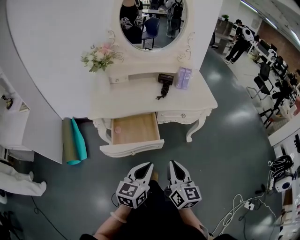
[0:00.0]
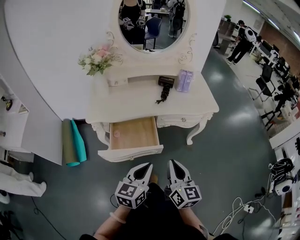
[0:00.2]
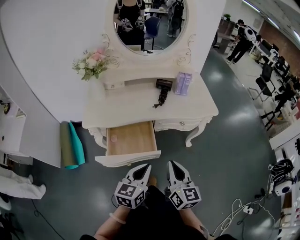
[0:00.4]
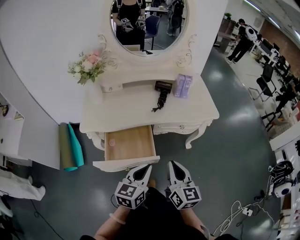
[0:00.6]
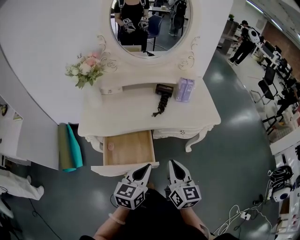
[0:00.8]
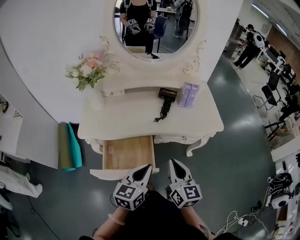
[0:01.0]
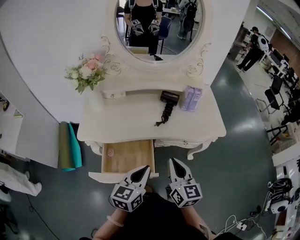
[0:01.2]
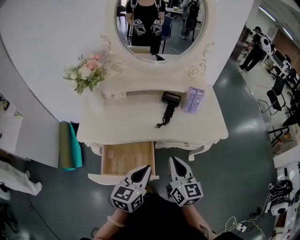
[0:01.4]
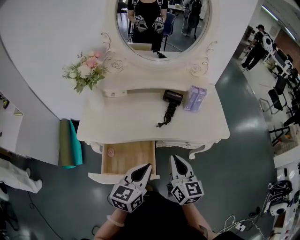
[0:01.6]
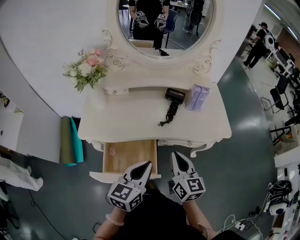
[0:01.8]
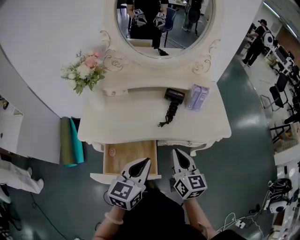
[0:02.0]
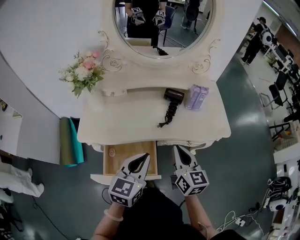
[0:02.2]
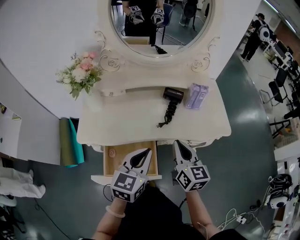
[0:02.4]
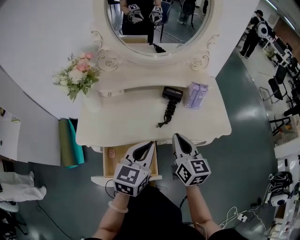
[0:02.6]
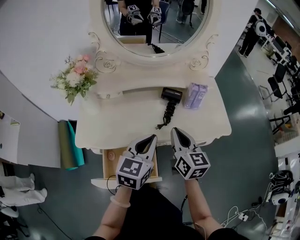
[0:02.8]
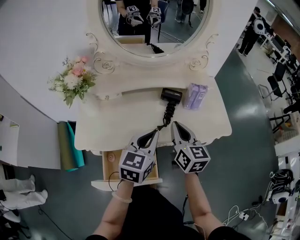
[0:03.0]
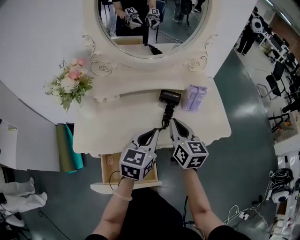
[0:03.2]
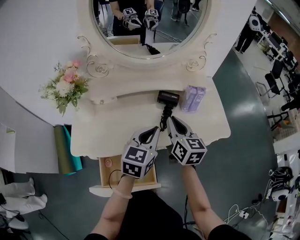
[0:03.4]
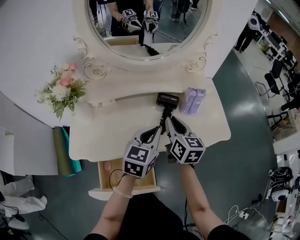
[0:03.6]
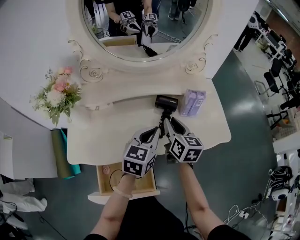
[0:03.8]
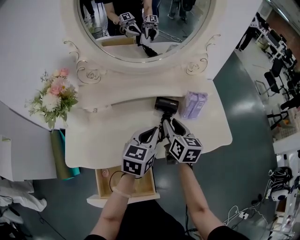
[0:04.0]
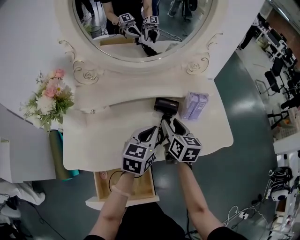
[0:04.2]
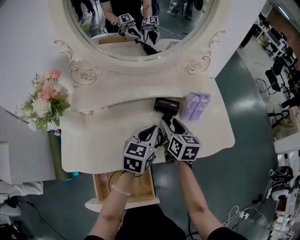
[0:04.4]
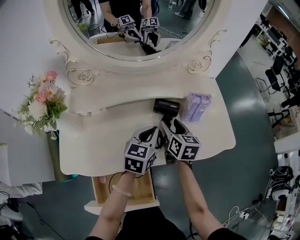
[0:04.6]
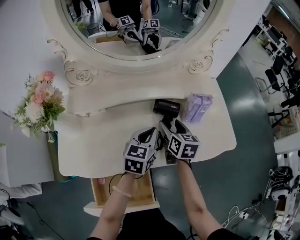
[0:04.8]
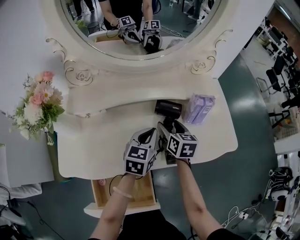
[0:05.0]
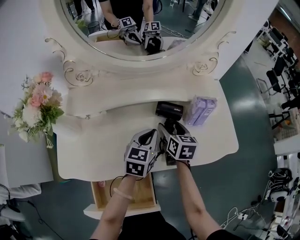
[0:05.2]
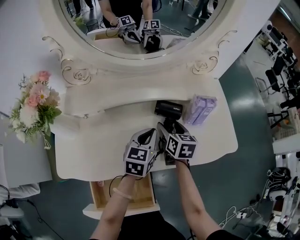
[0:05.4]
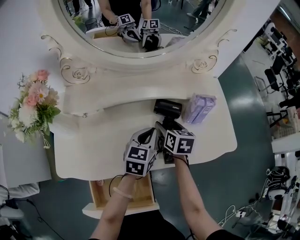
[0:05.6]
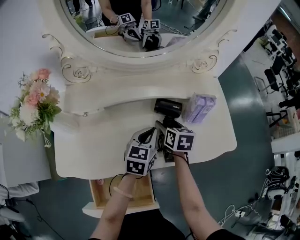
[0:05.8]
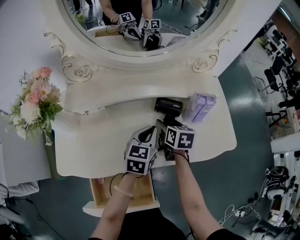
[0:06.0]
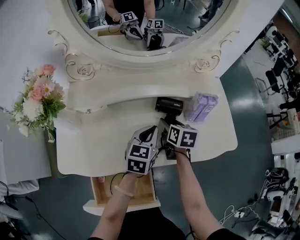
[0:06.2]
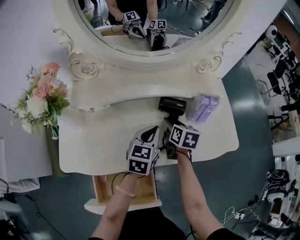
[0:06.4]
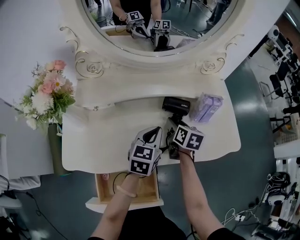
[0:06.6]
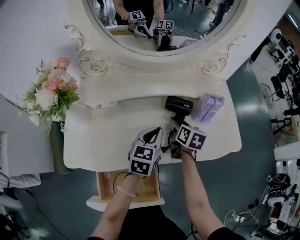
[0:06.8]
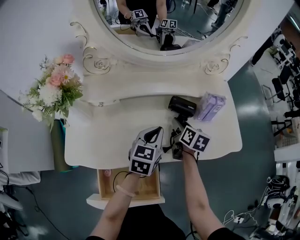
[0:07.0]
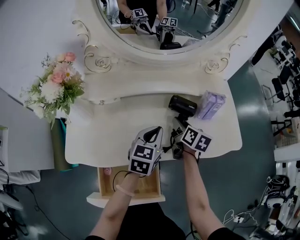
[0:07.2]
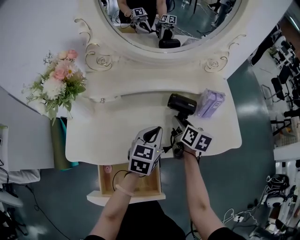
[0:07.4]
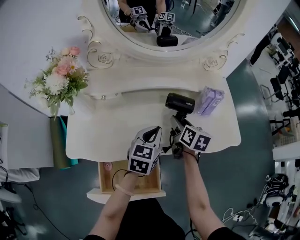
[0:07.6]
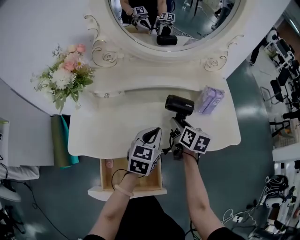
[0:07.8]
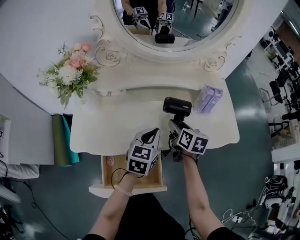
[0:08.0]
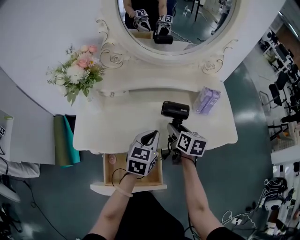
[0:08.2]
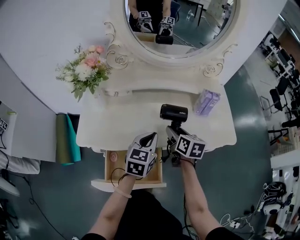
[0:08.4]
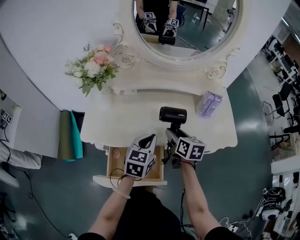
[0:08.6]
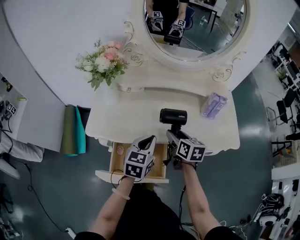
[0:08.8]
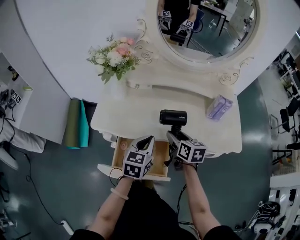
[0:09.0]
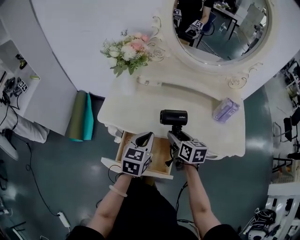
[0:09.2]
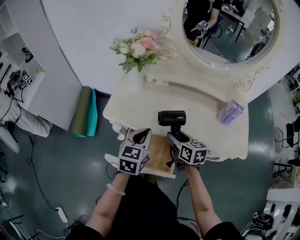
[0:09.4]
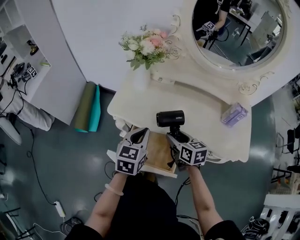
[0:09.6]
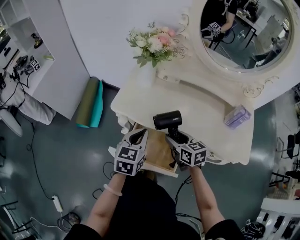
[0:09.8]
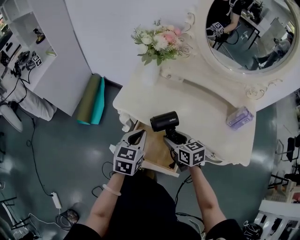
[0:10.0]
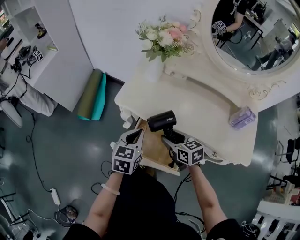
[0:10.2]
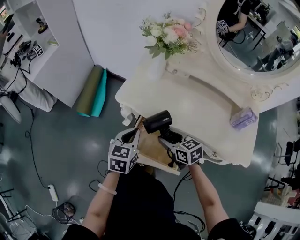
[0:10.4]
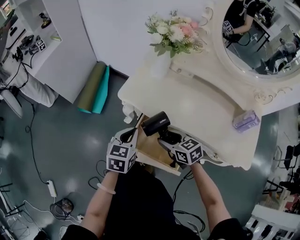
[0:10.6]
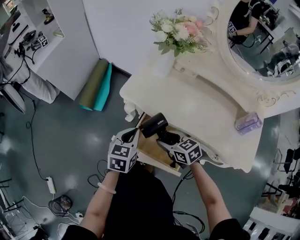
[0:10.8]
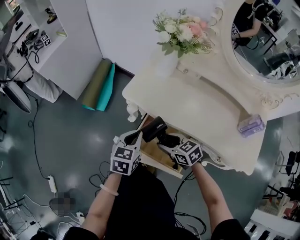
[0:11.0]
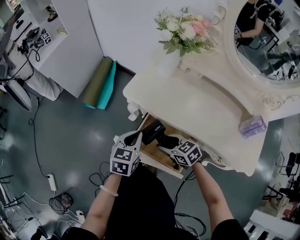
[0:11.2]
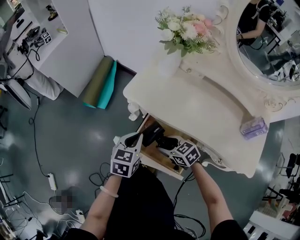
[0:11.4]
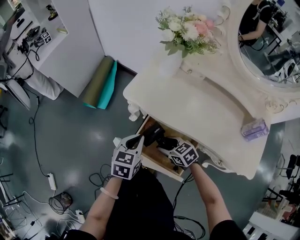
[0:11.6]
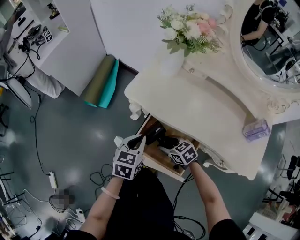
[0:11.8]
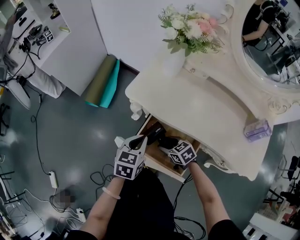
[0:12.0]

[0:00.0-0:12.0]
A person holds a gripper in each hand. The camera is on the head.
0:00.0 to 0:01.6: The grippers both shift forward by about 25 cm.
0:01.6 to 0:03.0: Both grippers travel together forward, about 15 cm.
0:03.0 to 0:04.4: The grippers both shift forward and downward by roughly 15 cm. The right gripper opens up.
0:04.4 to 0:06.0: The right gripper is displaced downward by about 10 cm. The left gripper moves approximately 5 cm.
0:06.0 to 0:07.6: The right gripper changes place by roughly 5 cm. Meanwhile the left gripper travels backward by about 5 cm.
0:07.6 to 0:09.0: Both grippers travel together backward and to the left, approximately 15 cm. The right gripper rotates some 20 degrees.
0:09.0 to 0:10.4: The right gripper ends up approximately 20 cm from where it was, and swivels roughly 40 degrees; the left gripper changes place by roughly 20 cm, and changes its angle by about 20 degrees.
0:10.4 to 0:12.0: The right gripper goes approximately 15 cm downward, and changes its angle by about 20 degrees. The left gripper heads downward, covering approximately 5 cm.

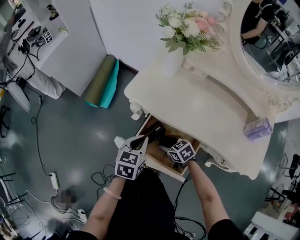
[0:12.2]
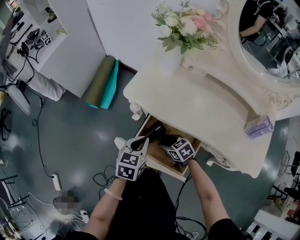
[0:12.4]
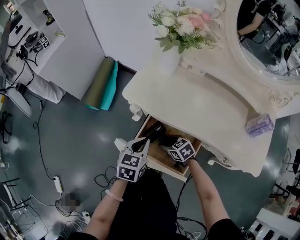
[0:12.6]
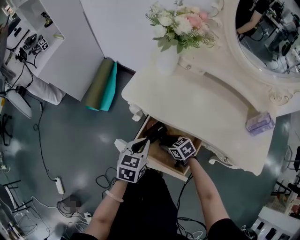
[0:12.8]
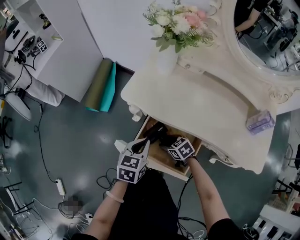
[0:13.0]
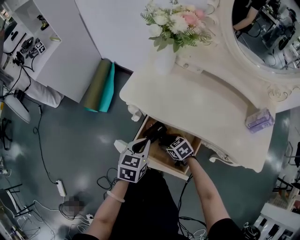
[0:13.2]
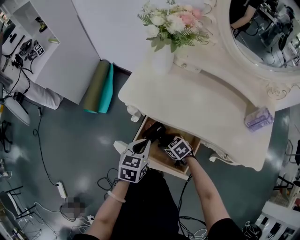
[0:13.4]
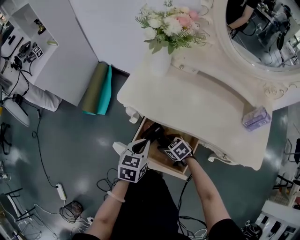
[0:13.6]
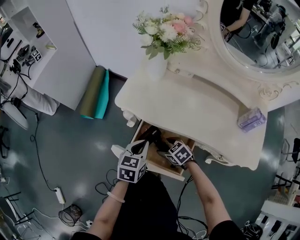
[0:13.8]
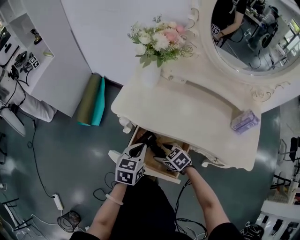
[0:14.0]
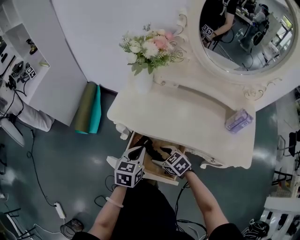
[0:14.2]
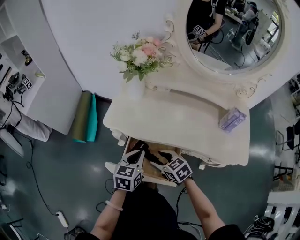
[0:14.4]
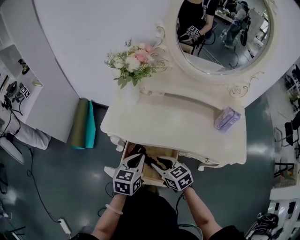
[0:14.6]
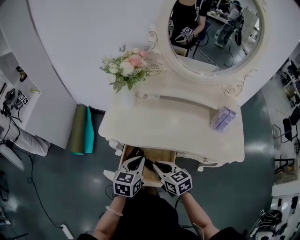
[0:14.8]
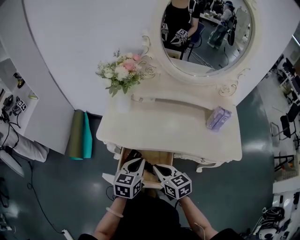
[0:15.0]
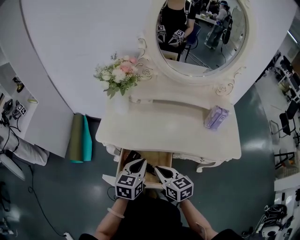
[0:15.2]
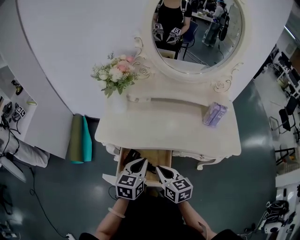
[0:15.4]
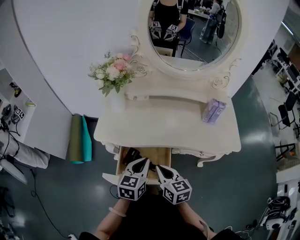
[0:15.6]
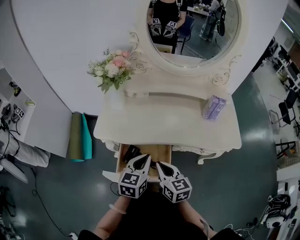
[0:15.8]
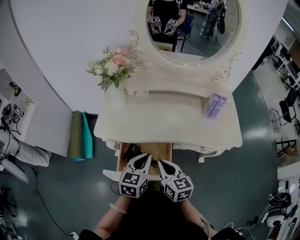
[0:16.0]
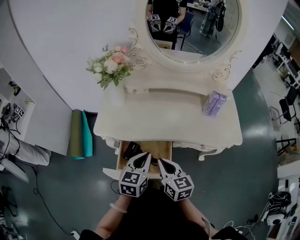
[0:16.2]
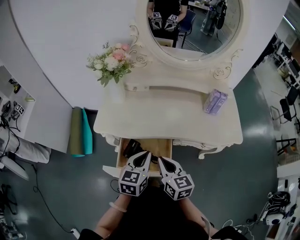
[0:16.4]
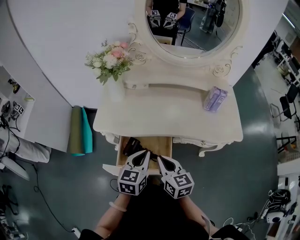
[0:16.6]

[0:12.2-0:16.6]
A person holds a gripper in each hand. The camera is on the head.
0:12.2 to 0:13.6: The grippers stay close to where they were, moving slightly.
0:13.6 to 0:15.2: The left gripper travels upward by about 10 cm. Meanwhile the right gripper goes approximately 25 cm upward, angles its fingers upward, by about 30 degrees, and closes up.
0:15.2 to 0:16.6: There are only small adjustments of the grippers.

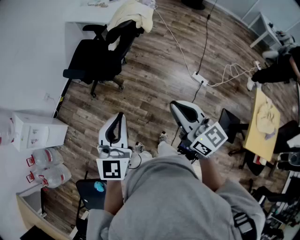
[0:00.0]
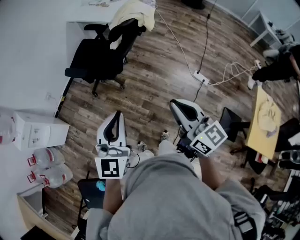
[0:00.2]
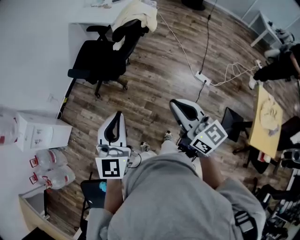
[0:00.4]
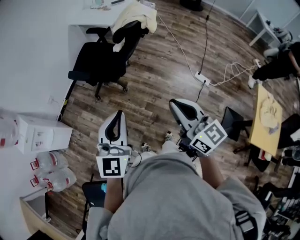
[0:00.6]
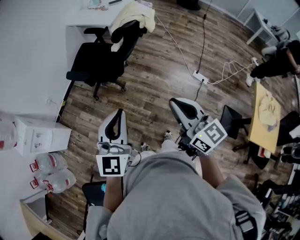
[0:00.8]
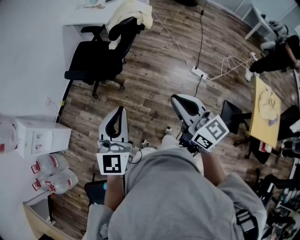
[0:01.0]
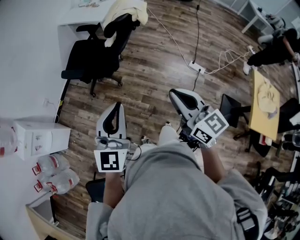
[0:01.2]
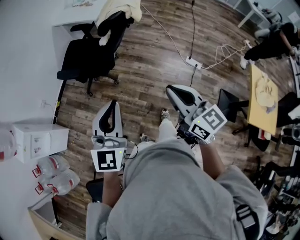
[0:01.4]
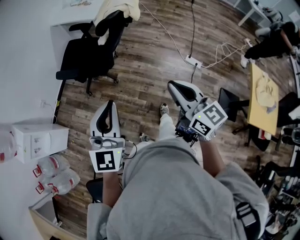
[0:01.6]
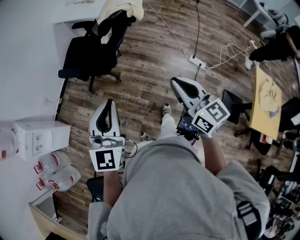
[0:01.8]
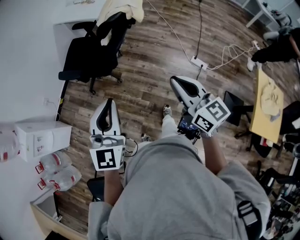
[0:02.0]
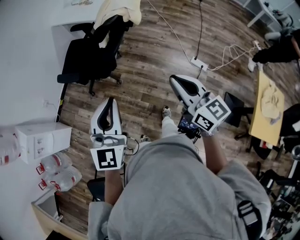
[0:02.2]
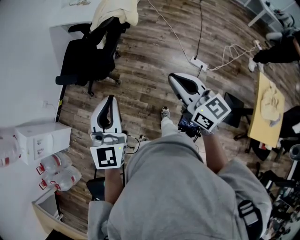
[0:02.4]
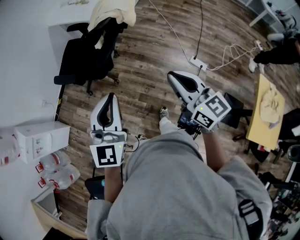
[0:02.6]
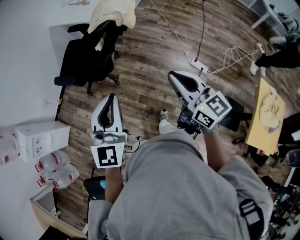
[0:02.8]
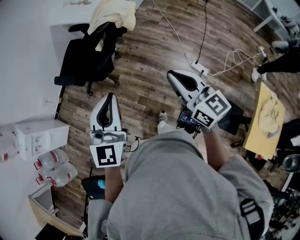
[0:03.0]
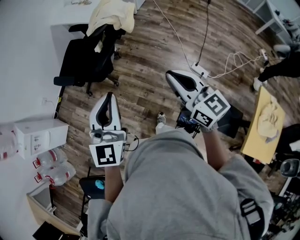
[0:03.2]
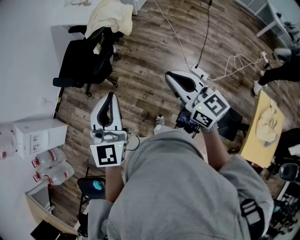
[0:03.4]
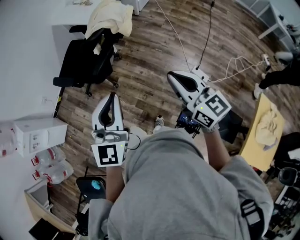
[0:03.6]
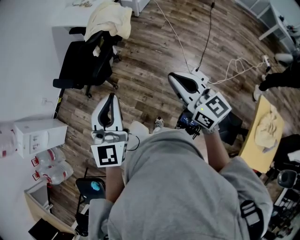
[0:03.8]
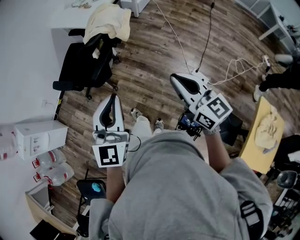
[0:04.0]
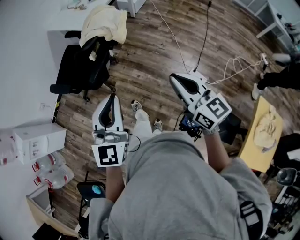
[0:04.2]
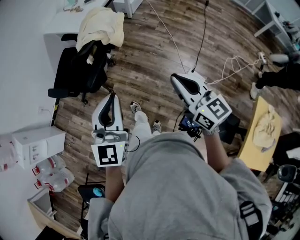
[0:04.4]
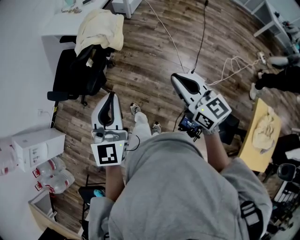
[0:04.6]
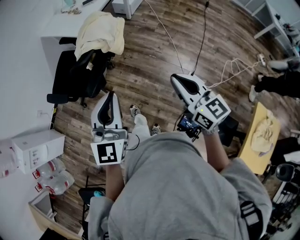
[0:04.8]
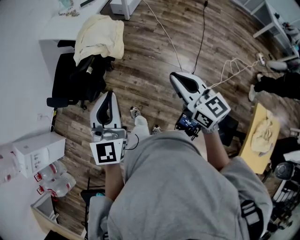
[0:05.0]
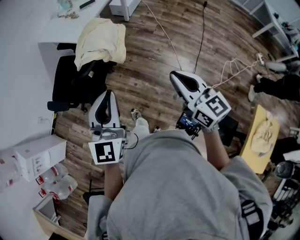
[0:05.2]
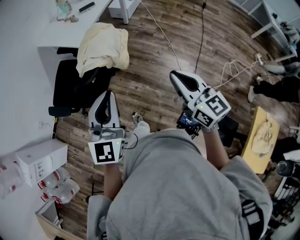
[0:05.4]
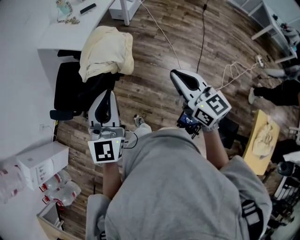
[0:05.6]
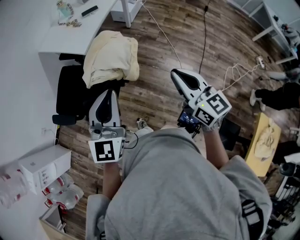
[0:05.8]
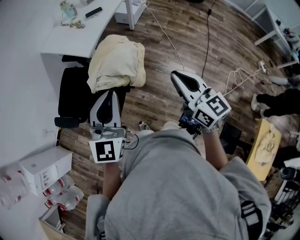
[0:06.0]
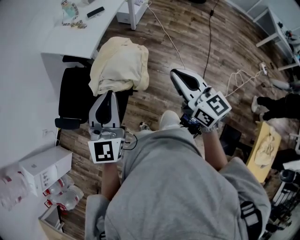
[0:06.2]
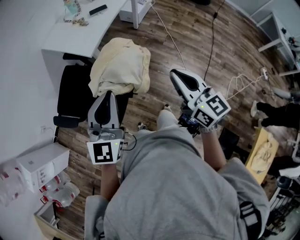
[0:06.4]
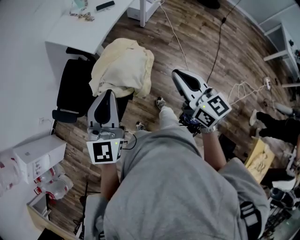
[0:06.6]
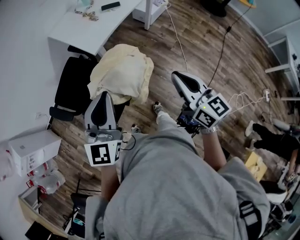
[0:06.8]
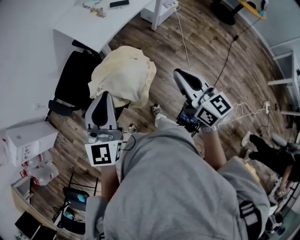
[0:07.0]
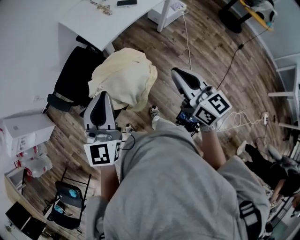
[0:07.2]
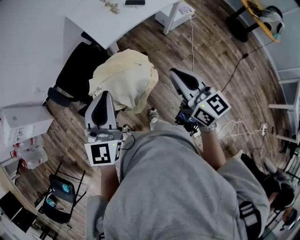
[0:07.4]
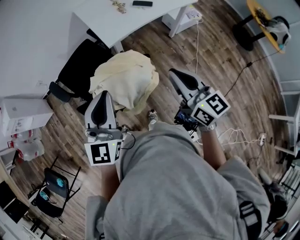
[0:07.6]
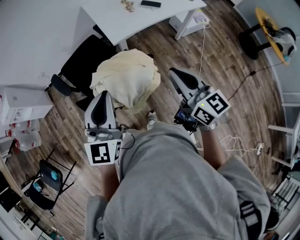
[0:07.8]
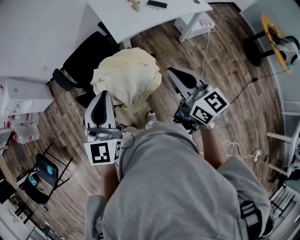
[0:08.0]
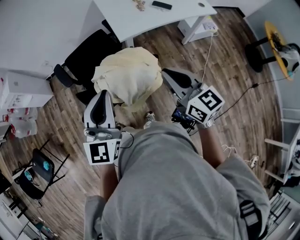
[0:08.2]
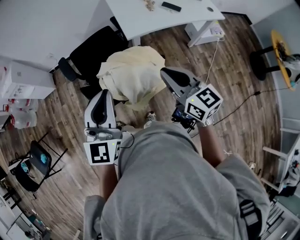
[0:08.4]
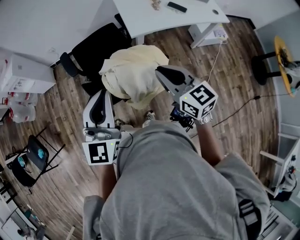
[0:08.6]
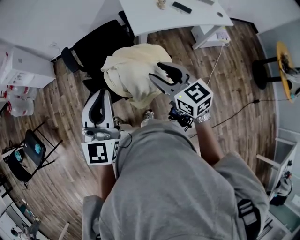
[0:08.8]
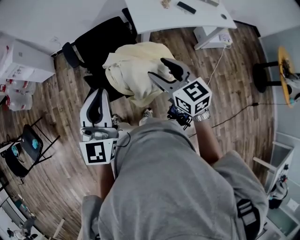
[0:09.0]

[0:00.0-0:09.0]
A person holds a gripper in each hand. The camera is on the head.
0:00.0 to 0:01.6: The grippers stay close to where they were, moving slightly.
0:01.6 to 0:03.0: The right gripper heads forward and to the right, covering approximately 20 cm; the left gripper goes some 20 cm to the right and forward.
0:03.0 to 0:04.4: Both grippers travel together to the right and forward, about 15 cm.
0:04.4 to 0:06.0: Both grippers move forward, some 25 cm.
0:06.0 to 0:07.6: The left gripper ends up about 10 cm from where it was, and rotates roughly 30 degrees. Meanwhile the right gripper ends up approximately 20 cm from where it was, and rotates roughly 30 degrees.
0:07.6 to 0:09.0: The left gripper moves to the left, approximately 10 cm, and swivels about 20 degrees. The right gripper is displaced to the left, forward and downward by about 15 cm, swivels roughly 30 degrees, and opens its fingers.
